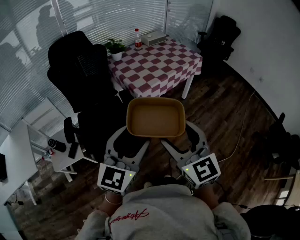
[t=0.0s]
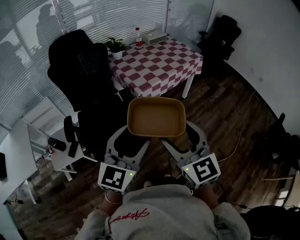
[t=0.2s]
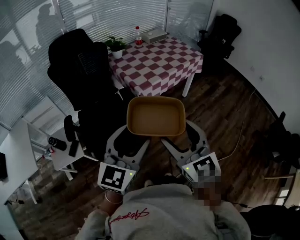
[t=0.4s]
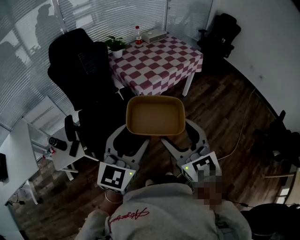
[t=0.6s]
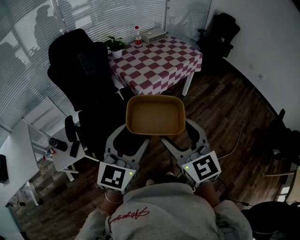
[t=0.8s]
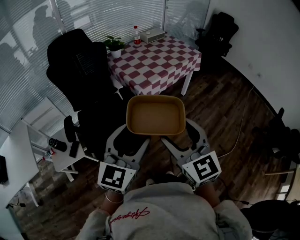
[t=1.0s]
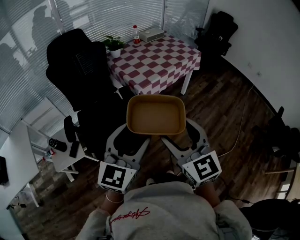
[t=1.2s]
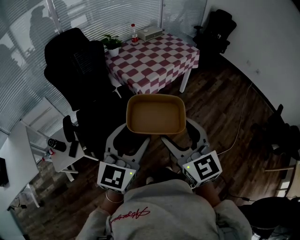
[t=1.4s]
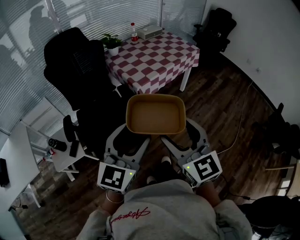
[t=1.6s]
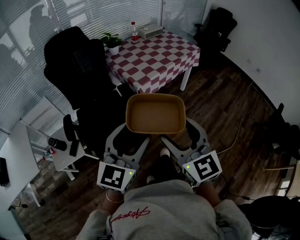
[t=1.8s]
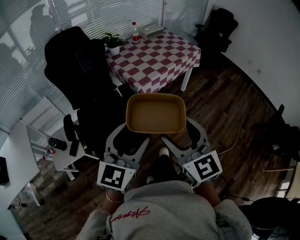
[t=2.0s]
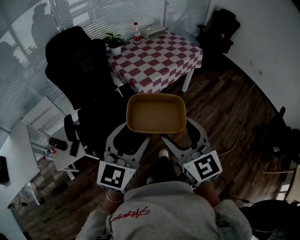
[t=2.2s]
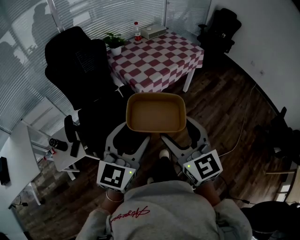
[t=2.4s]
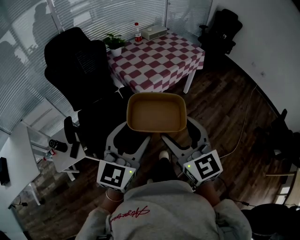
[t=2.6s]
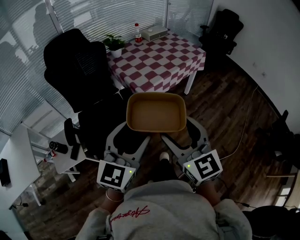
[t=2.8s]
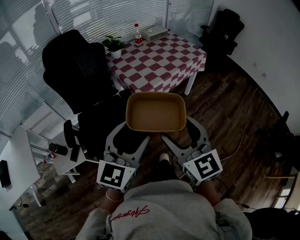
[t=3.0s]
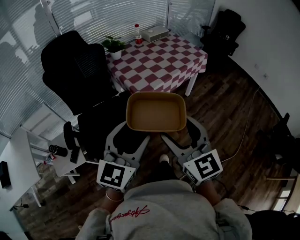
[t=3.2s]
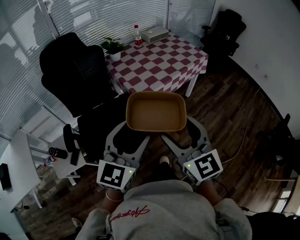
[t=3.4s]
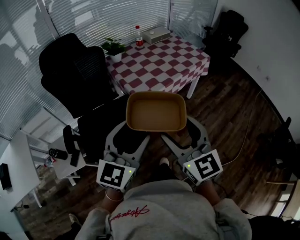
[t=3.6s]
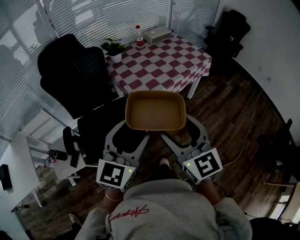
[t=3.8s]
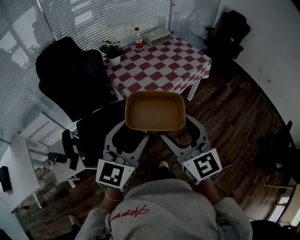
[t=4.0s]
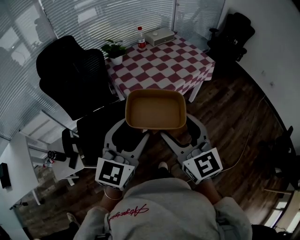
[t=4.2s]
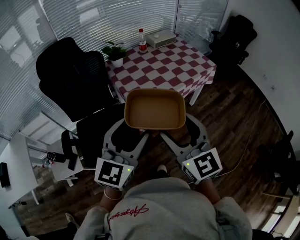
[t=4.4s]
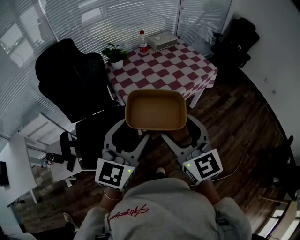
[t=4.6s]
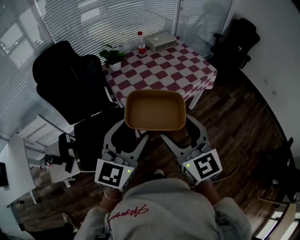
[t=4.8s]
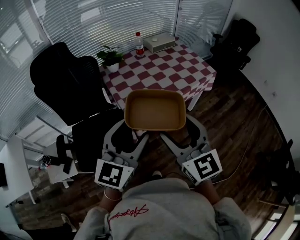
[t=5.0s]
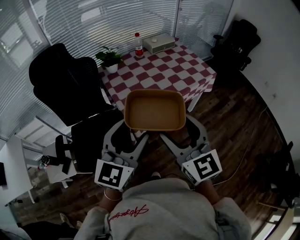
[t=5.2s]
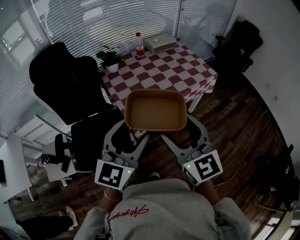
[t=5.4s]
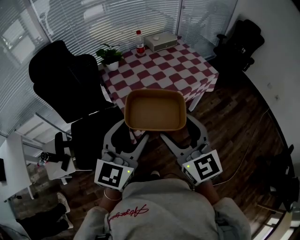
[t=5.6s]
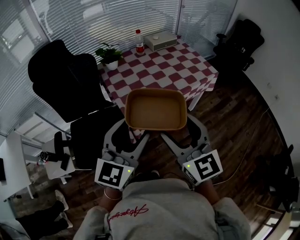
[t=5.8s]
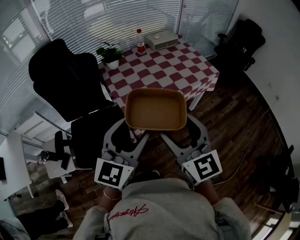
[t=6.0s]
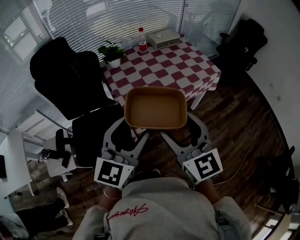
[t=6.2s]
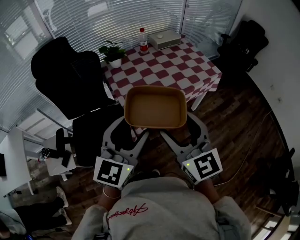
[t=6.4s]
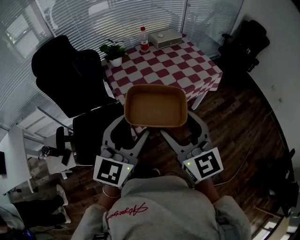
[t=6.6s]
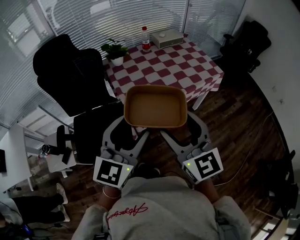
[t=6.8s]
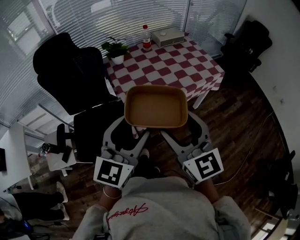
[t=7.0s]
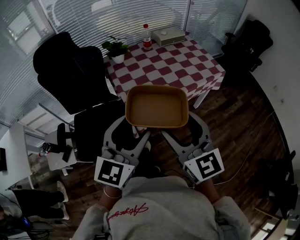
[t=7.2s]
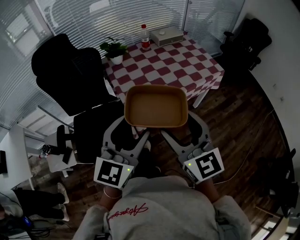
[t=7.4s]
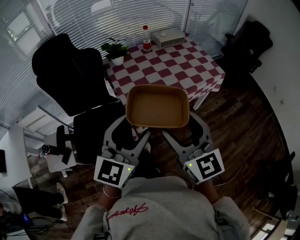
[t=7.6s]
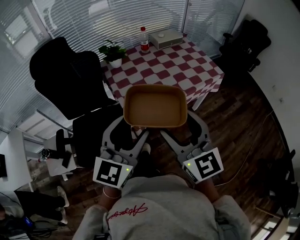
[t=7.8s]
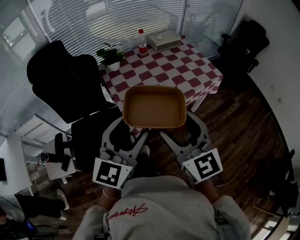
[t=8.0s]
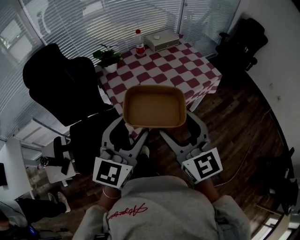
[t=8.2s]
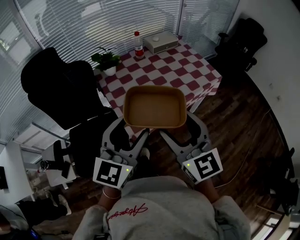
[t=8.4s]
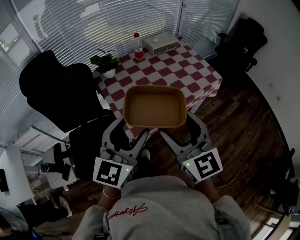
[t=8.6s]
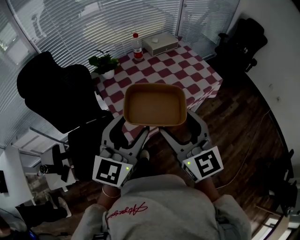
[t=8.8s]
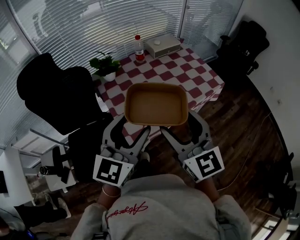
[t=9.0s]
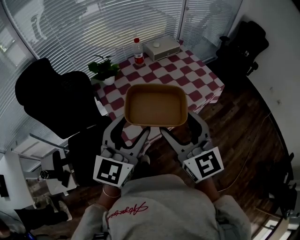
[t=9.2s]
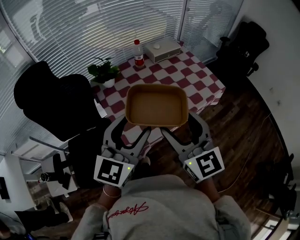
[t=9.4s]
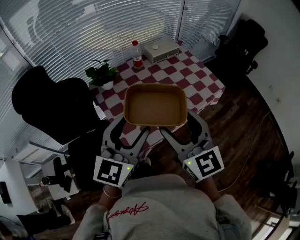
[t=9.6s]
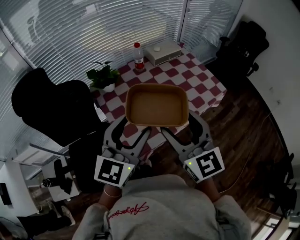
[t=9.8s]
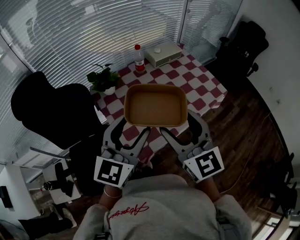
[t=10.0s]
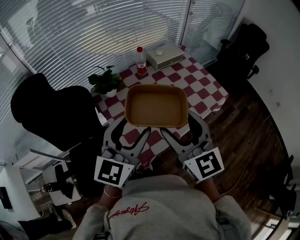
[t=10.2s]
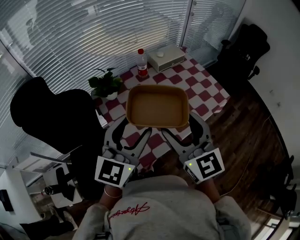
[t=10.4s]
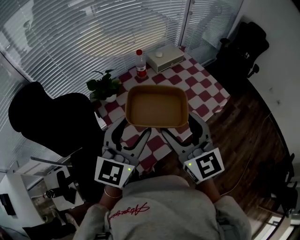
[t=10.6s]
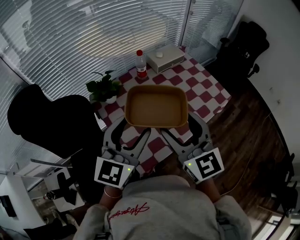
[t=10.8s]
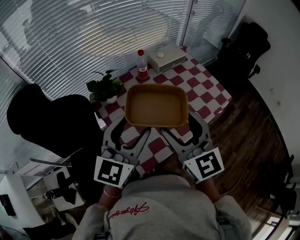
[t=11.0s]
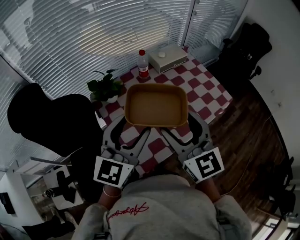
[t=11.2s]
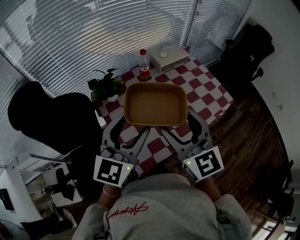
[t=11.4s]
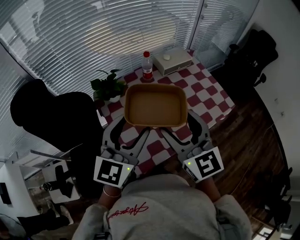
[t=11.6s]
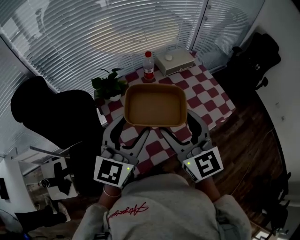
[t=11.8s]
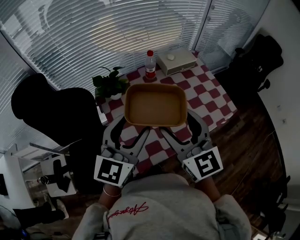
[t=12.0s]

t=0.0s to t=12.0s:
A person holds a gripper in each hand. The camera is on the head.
t=0.0s to t=1.6s: The grippers move only a little.
t=1.6s to t=3.0s: Both grippers move forward, approximately 10 cm.
t=3.0s to t=4.4s: The grippers both shift forward by roughly 15 cm.
t=4.4s to t=6.0s: The grippers both shift forward and to the right by approximately 10 cm.
t=6.0s to t=7.6s: Both grippers stay about where they are.
t=7.6s to t=9.0s: Both grippers move forward, roughly 15 cm.
t=9.0s to t=10.4s: Both grippers move forward, about 15 cm.
t=10.4s to t=12.0s: The left gripper changes place by some 5 cm, while the right gripper moves forward, approximately 5 cm.

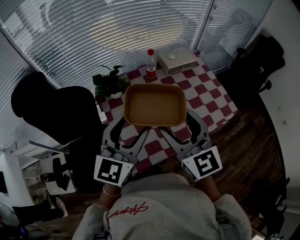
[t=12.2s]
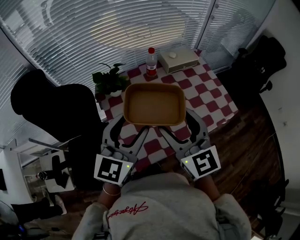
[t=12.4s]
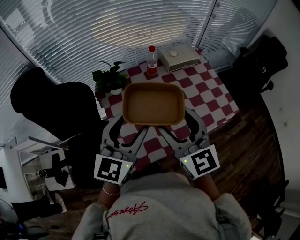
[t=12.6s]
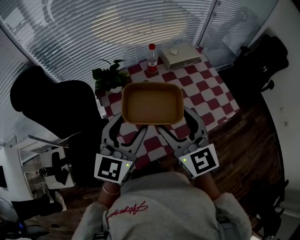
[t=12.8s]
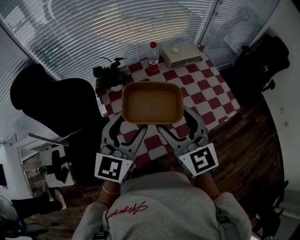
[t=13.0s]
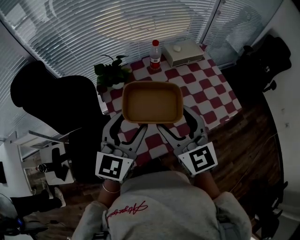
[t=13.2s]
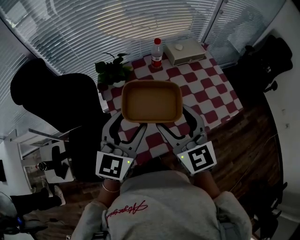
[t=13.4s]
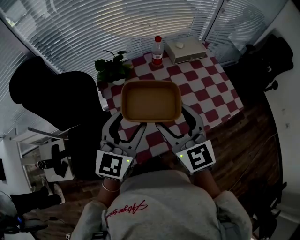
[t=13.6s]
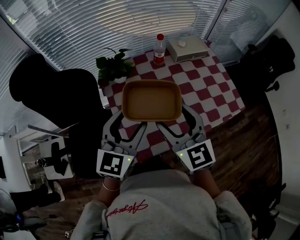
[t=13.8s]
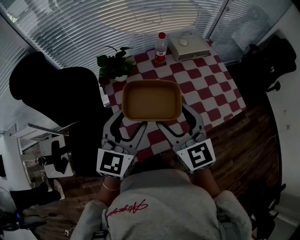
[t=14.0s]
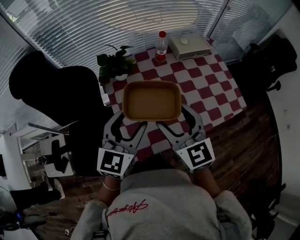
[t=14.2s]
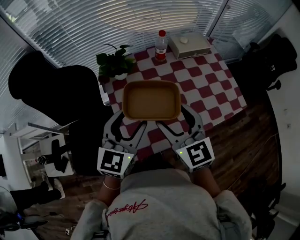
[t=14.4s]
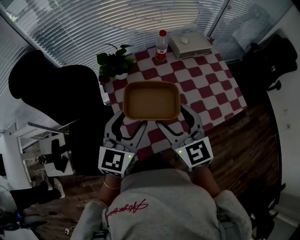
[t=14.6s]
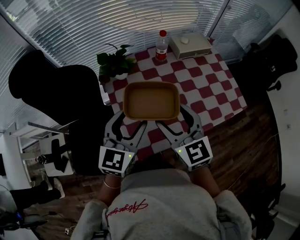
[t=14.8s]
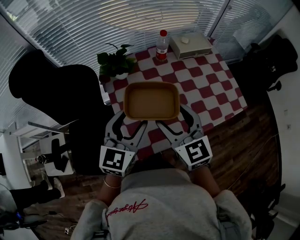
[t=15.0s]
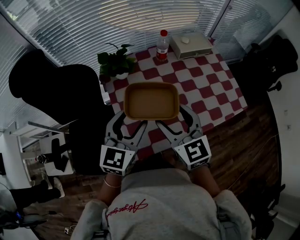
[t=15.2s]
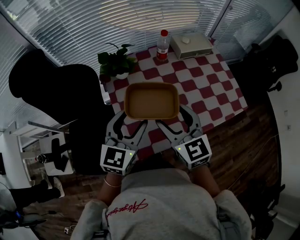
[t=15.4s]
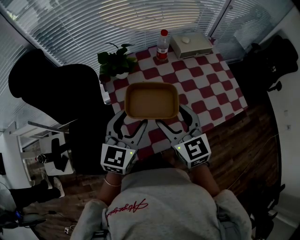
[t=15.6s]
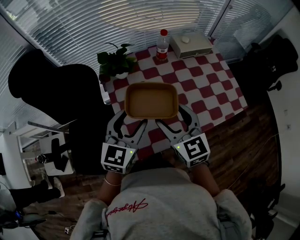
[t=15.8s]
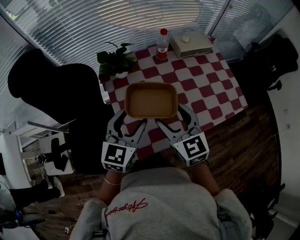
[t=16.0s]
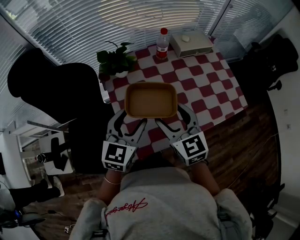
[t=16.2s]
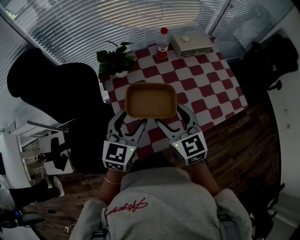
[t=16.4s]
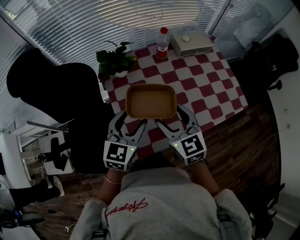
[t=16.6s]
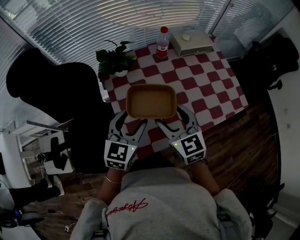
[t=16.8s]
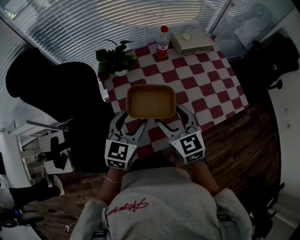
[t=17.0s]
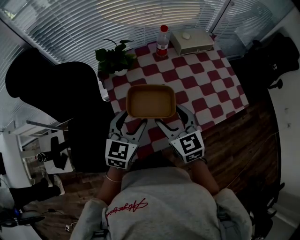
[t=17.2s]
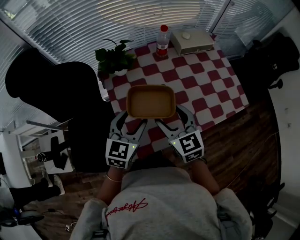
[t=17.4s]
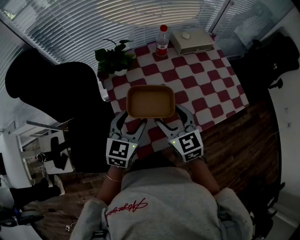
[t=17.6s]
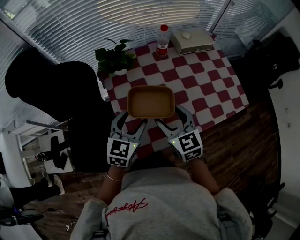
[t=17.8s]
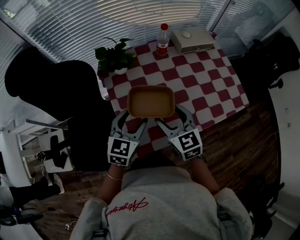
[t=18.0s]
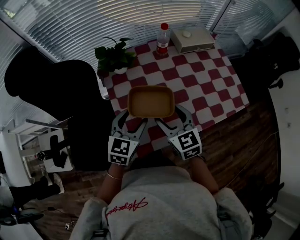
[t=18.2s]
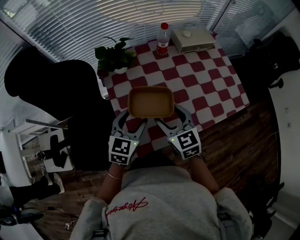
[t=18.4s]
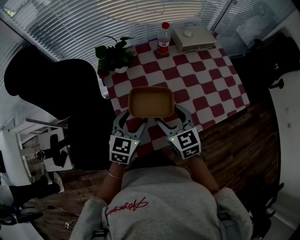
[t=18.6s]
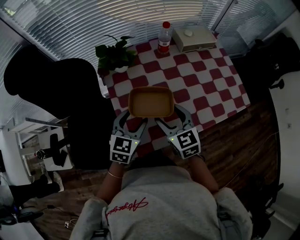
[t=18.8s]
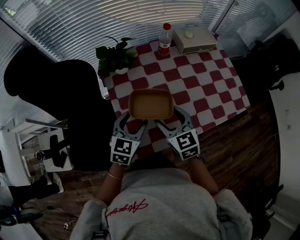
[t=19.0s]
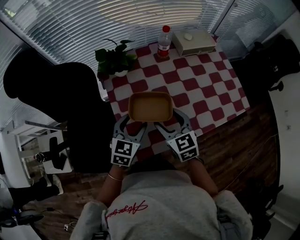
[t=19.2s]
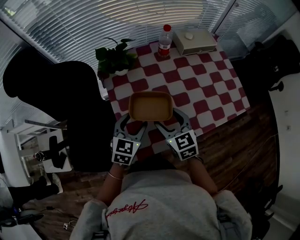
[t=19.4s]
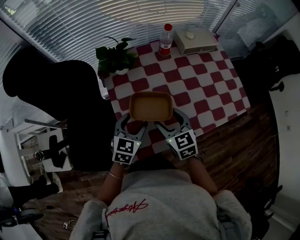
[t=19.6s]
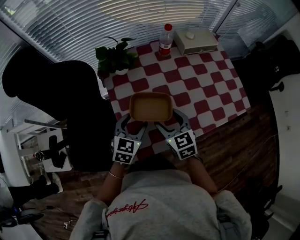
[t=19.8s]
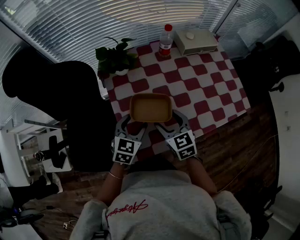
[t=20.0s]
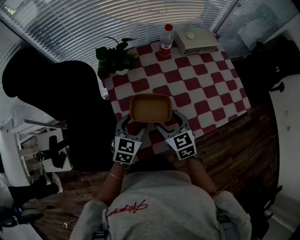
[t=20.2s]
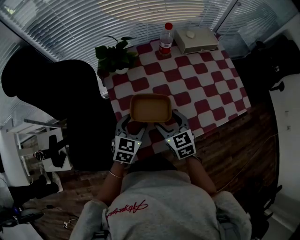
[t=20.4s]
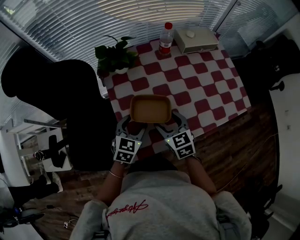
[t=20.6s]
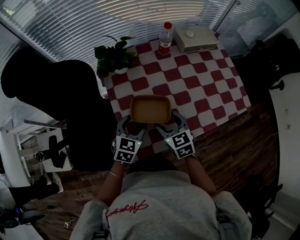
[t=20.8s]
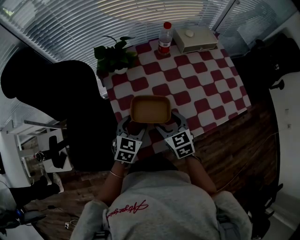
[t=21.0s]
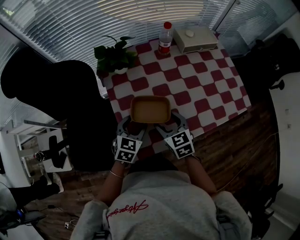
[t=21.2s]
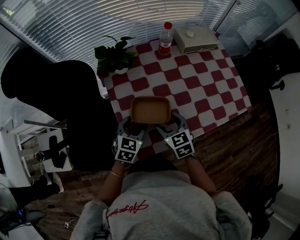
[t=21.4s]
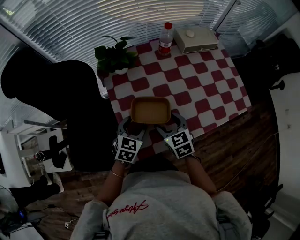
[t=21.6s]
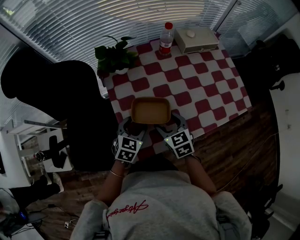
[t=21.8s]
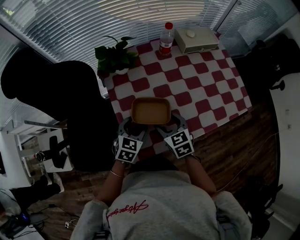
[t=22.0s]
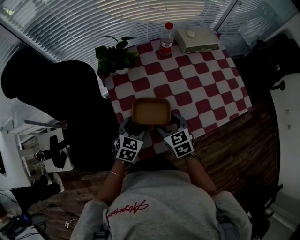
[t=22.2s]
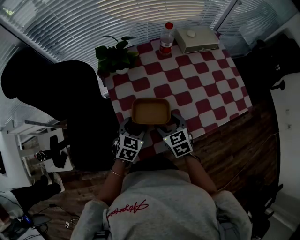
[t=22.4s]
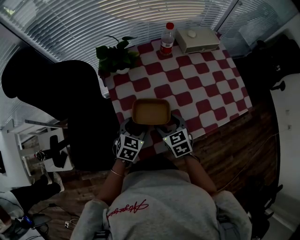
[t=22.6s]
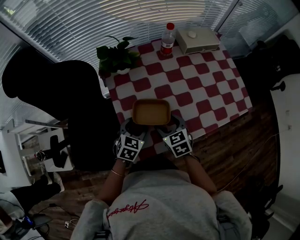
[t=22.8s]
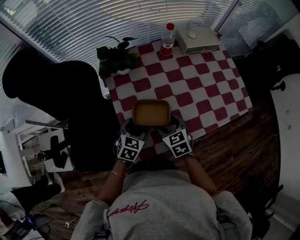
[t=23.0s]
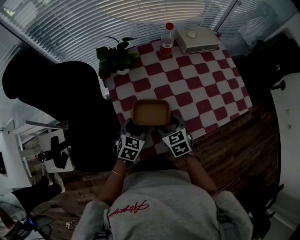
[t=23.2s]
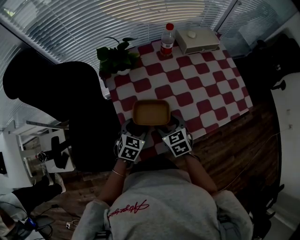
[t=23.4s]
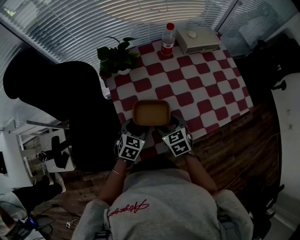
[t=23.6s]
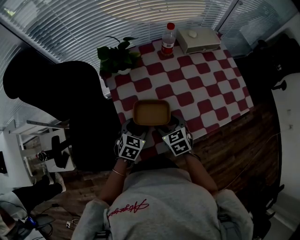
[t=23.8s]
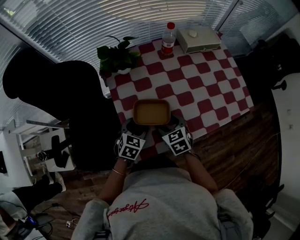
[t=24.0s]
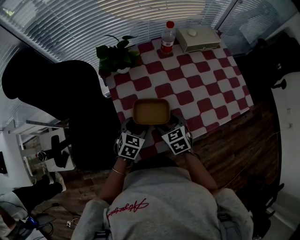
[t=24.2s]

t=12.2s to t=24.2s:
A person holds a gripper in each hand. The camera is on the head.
t=12.2s to t=13.8s: The grippers both shift downward by roughly 5 cm.
t=13.8s to t=15.2s: The grippers make only small movements.
t=15.2s to t=16.6s: There are only small adjustments of the grippers.
t=16.6s to t=18.2s: Both grippers travel together downward, roughly 5 cm.
t=18.2s to t=19.8s: Both grippers move downward, about 5 cm.
t=19.8s to t=21.2s: The grippers make only small movements.
t=21.2s to t=24.2s: The grippers make only small movements.
